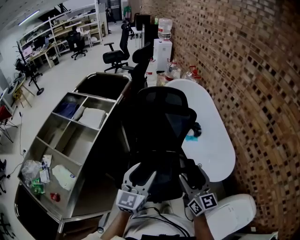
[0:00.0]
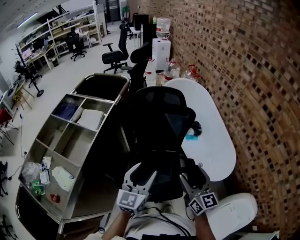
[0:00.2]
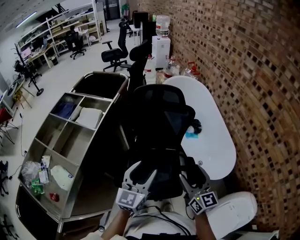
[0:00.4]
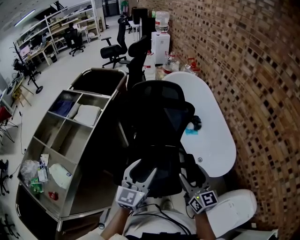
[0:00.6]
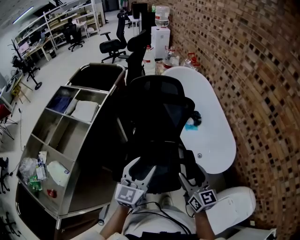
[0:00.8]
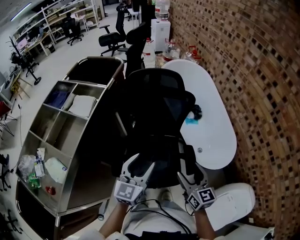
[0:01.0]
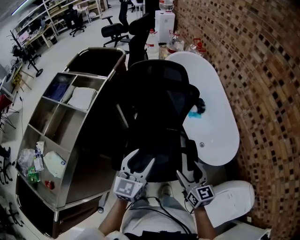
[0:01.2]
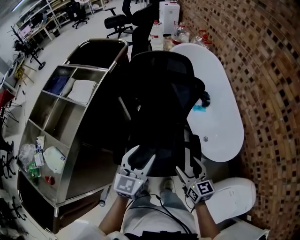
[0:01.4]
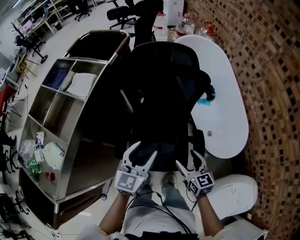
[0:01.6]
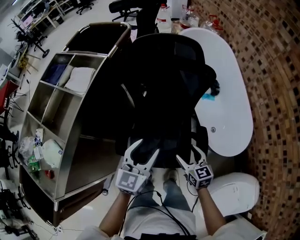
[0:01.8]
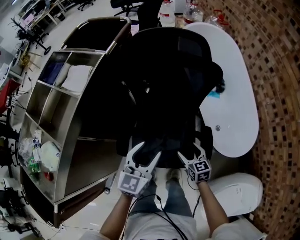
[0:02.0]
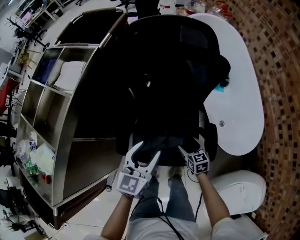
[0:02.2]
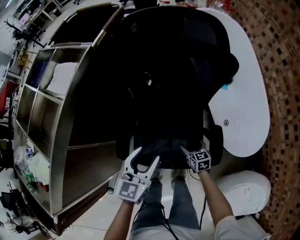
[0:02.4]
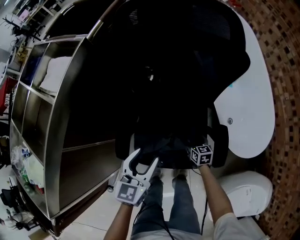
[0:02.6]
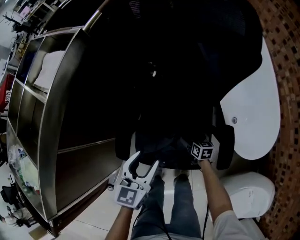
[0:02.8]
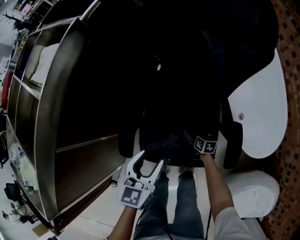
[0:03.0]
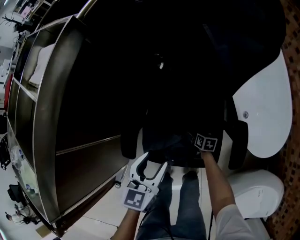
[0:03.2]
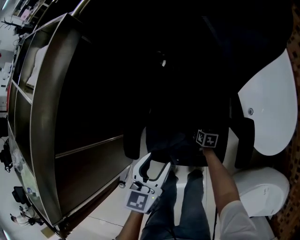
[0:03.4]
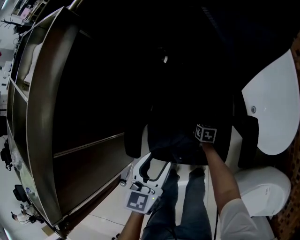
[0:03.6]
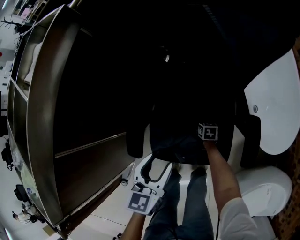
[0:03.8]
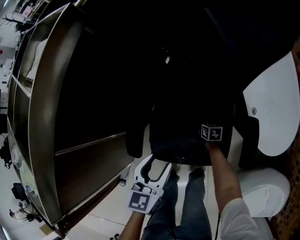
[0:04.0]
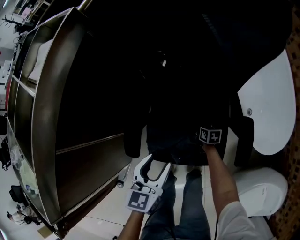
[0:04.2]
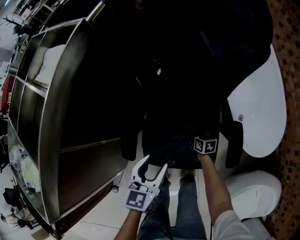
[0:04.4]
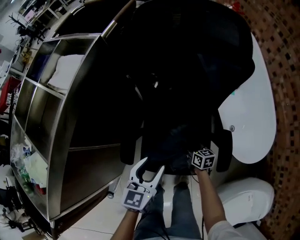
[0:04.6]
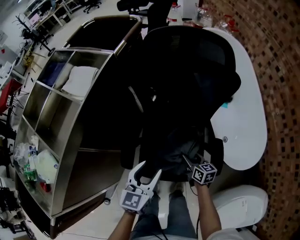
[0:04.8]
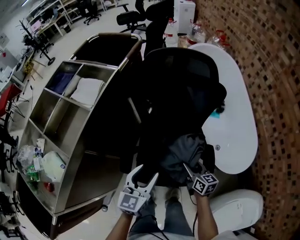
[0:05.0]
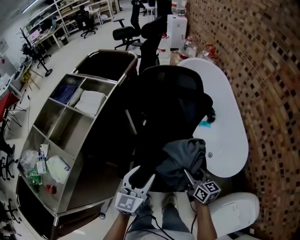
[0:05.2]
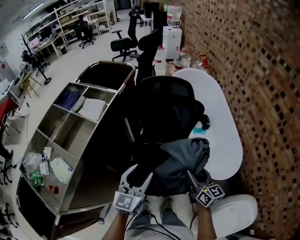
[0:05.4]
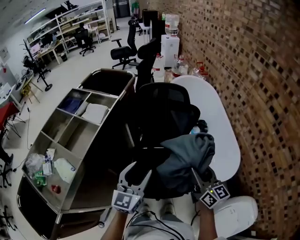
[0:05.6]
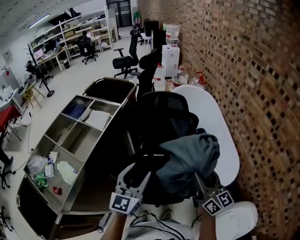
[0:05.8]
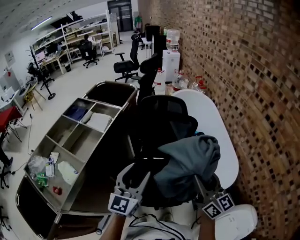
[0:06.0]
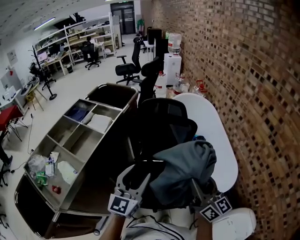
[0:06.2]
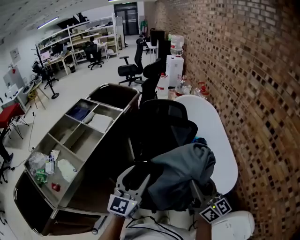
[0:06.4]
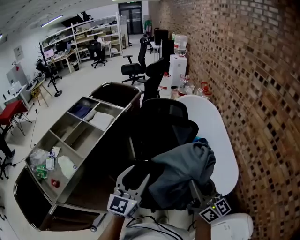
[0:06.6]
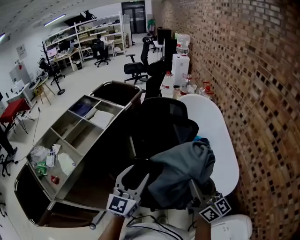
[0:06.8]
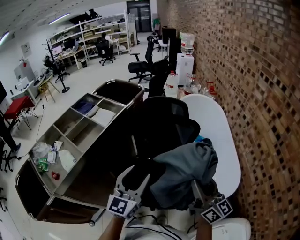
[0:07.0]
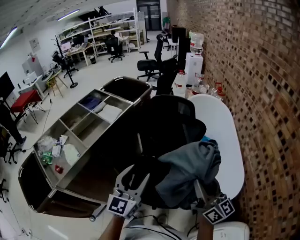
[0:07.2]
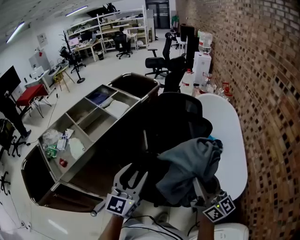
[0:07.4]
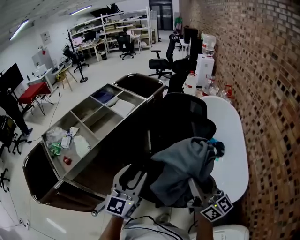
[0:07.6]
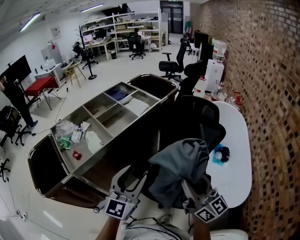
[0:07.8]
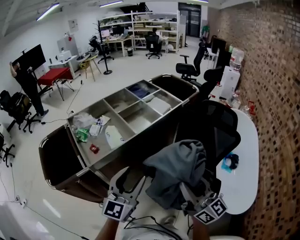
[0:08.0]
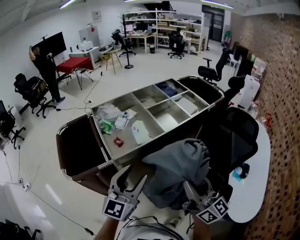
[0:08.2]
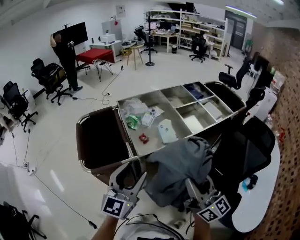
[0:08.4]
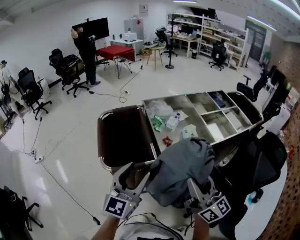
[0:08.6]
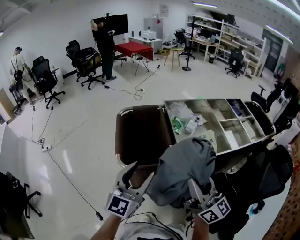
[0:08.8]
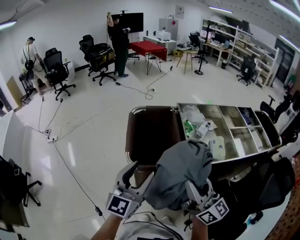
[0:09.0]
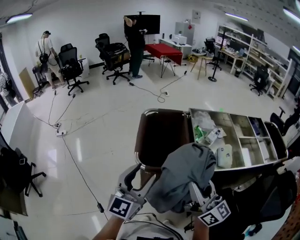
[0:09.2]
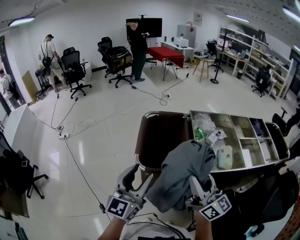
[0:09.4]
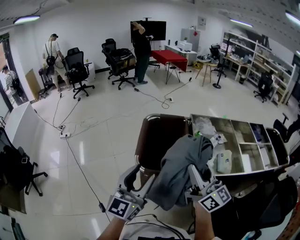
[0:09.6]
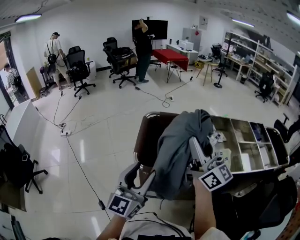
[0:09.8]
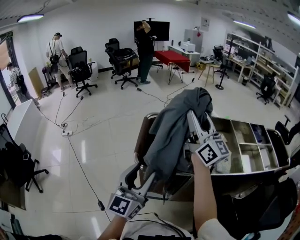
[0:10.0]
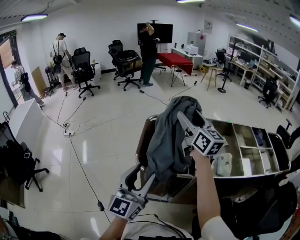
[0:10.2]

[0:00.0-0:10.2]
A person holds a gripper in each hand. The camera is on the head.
0:00.0 to 0:01.4: The left gripper shifts about 5 cm downward. Meanwhile the right gripper goes about 15 cm downward, and swivels about 20 degrees.
0:01.4 to 0:03.0: The left gripper is displaced downward by about 25 cm. The right gripper shifts approximately 50 cm downward, changes its angle by approximately 40 degrees, and opens.
0:03.0 to 0:04.4: The right gripper reaches some 10 cm downward, then returns, and closes.
0:04.4 to 0:05.8: The left gripper travels upward by approximately 35 cm, and tilts its fingers some 30 degrees upward; the right gripper heads upward, covering about 70 cm, and angles its fingers upward, by about 50 degrees.
0:05.8 to 0:07.2: The left gripper changes place by some 5 cm.
0:07.2 to 0:08.8: Both grippers are carried approximately 70 cm. The right gripper swivels some 50 degrees; the left gripper rotates about 50 degrees.
0:08.8 to 0:10.2: The left gripper heads to the left, covering approximately 5 cm, and rotates some 20 degrees. Meanwhile the right gripper travels forward by some 25 cm.

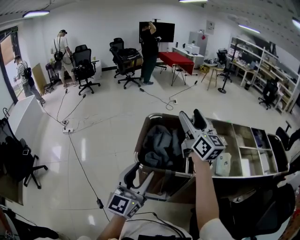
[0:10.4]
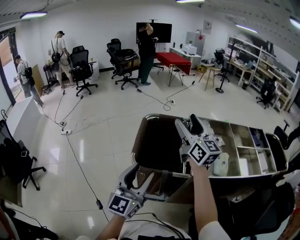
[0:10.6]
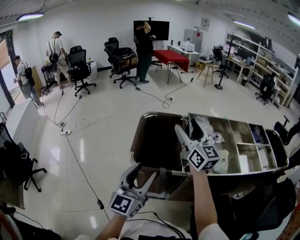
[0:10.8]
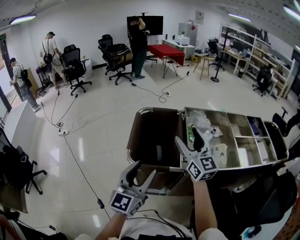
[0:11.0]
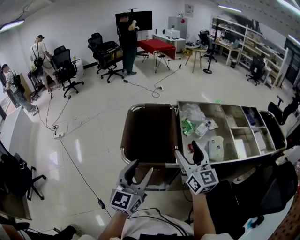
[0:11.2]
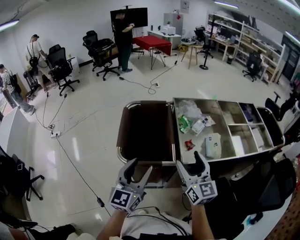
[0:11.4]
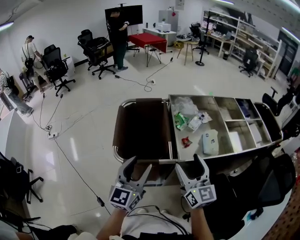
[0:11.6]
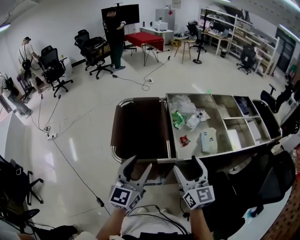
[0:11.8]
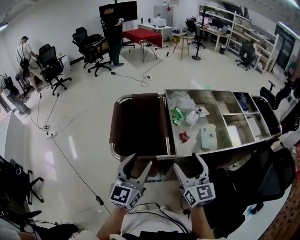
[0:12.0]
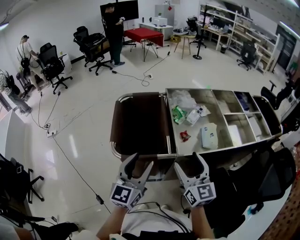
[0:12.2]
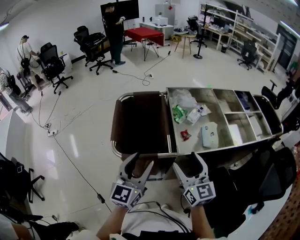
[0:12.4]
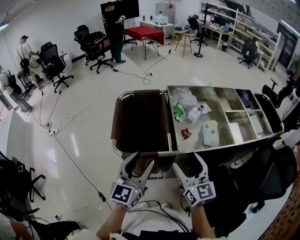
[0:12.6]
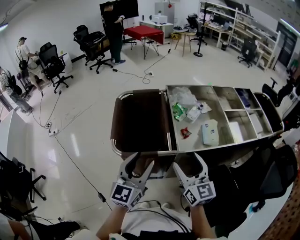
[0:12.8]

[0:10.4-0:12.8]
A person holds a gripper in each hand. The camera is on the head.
0:10.4 to 0:11.6: The left gripper travels to the right and downward by some 10 cm; the right gripper is displaced downward, backward and to the right by roughly 25 cm, and changes its angle by some 20 degrees.
0:11.6 to 0:12.8: The grippers make only small movements.

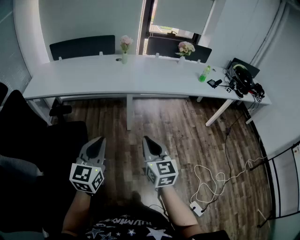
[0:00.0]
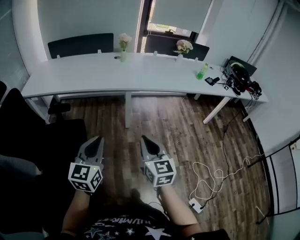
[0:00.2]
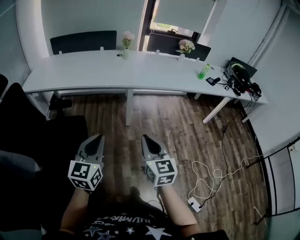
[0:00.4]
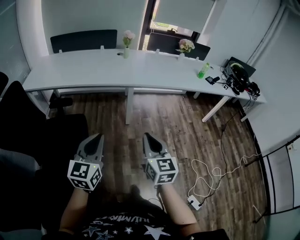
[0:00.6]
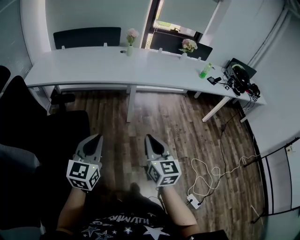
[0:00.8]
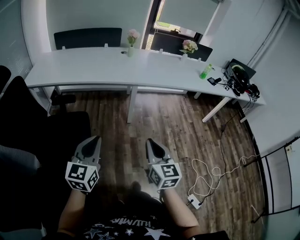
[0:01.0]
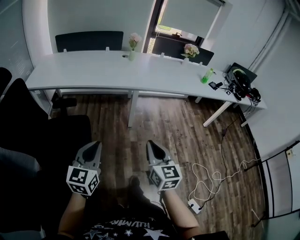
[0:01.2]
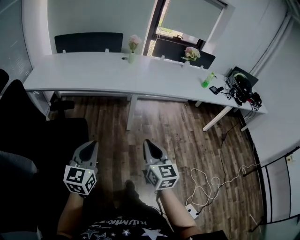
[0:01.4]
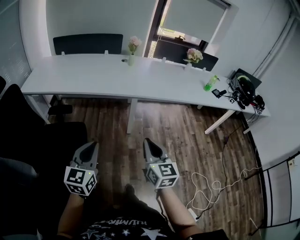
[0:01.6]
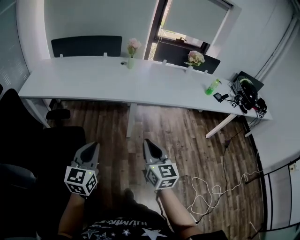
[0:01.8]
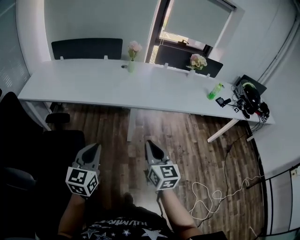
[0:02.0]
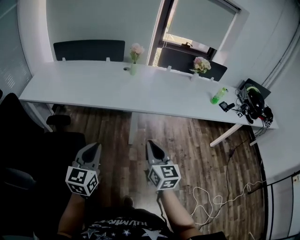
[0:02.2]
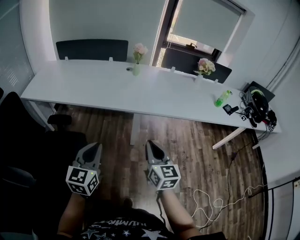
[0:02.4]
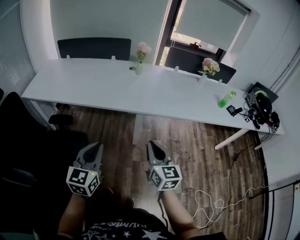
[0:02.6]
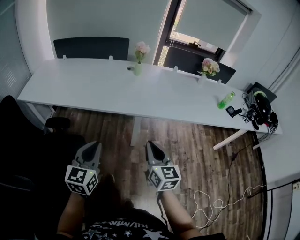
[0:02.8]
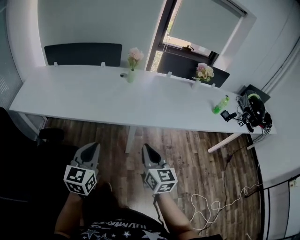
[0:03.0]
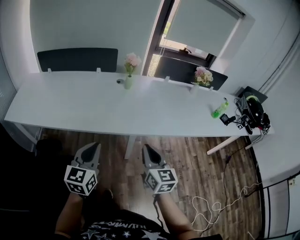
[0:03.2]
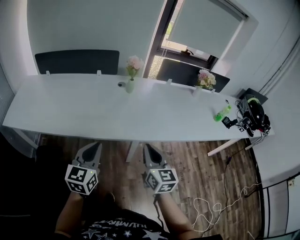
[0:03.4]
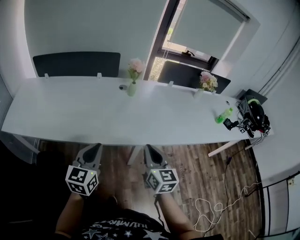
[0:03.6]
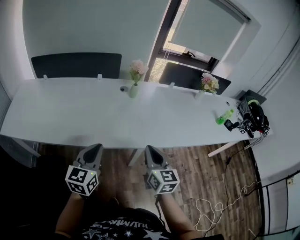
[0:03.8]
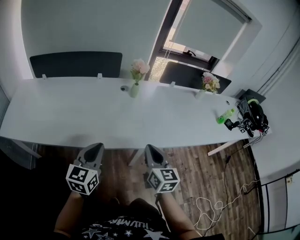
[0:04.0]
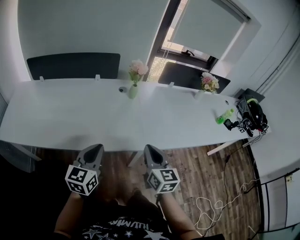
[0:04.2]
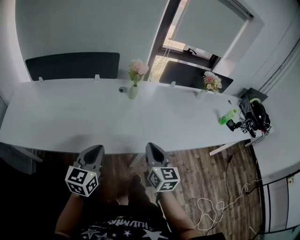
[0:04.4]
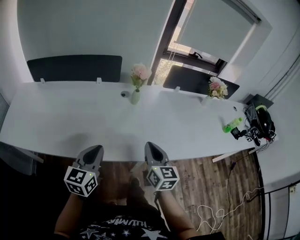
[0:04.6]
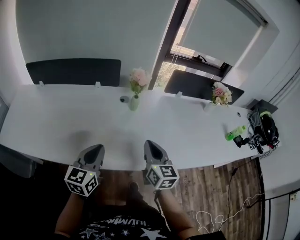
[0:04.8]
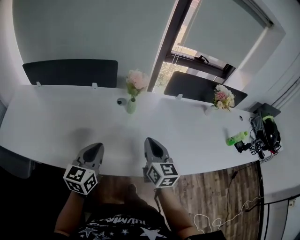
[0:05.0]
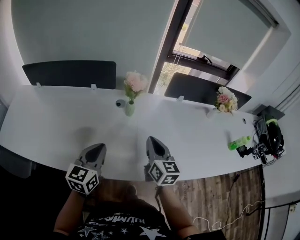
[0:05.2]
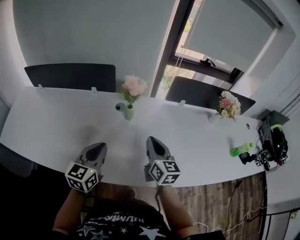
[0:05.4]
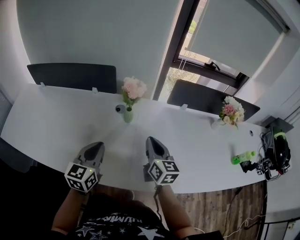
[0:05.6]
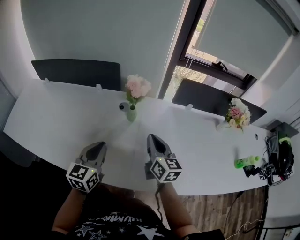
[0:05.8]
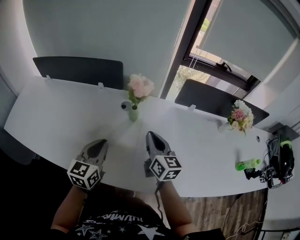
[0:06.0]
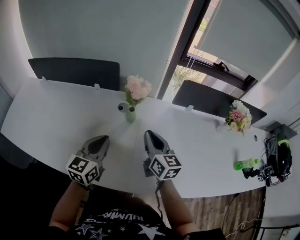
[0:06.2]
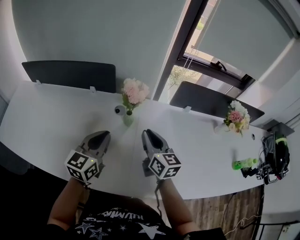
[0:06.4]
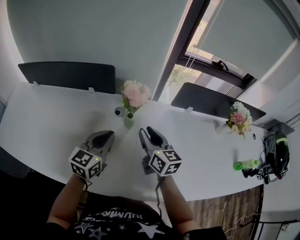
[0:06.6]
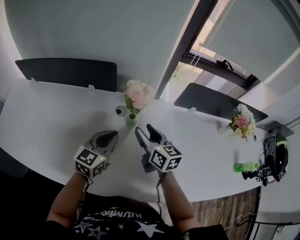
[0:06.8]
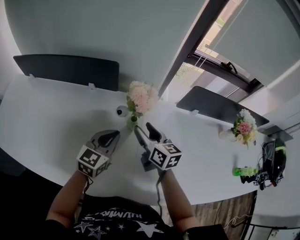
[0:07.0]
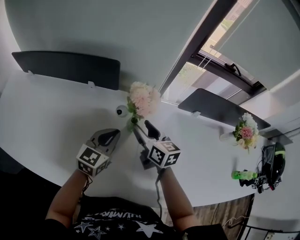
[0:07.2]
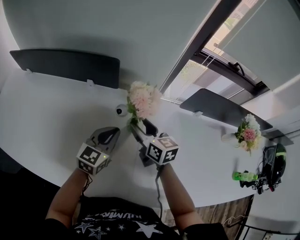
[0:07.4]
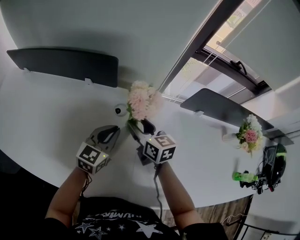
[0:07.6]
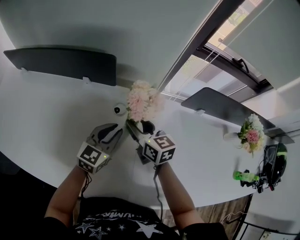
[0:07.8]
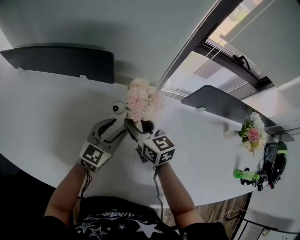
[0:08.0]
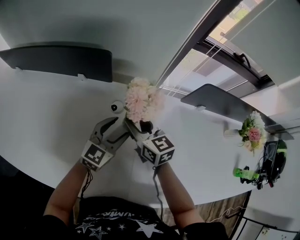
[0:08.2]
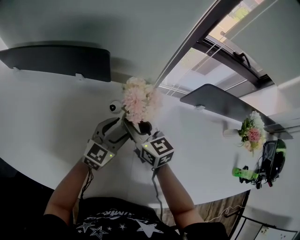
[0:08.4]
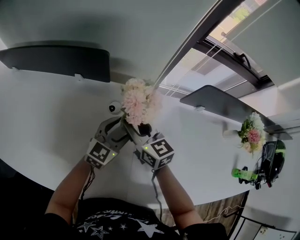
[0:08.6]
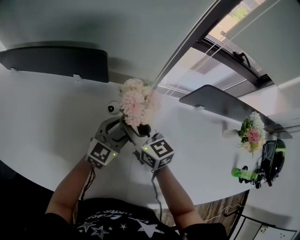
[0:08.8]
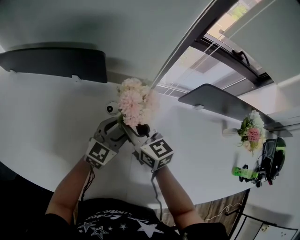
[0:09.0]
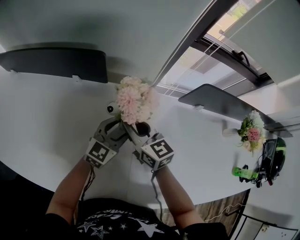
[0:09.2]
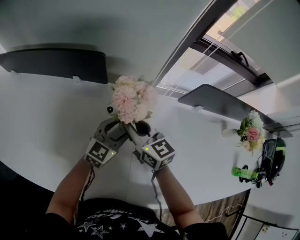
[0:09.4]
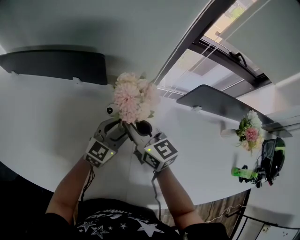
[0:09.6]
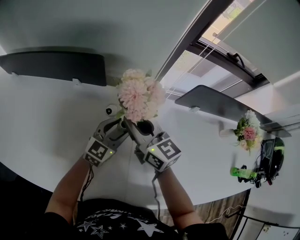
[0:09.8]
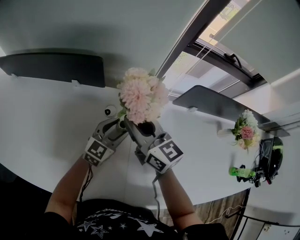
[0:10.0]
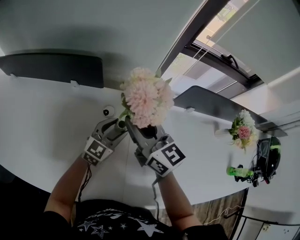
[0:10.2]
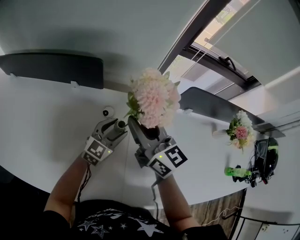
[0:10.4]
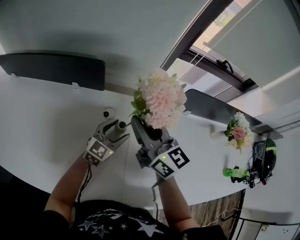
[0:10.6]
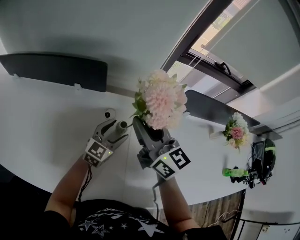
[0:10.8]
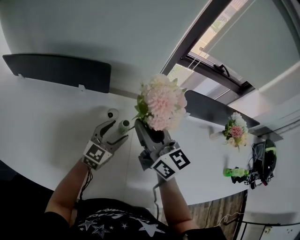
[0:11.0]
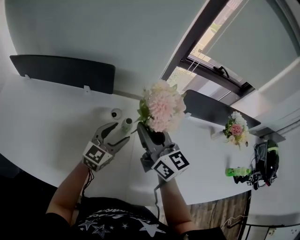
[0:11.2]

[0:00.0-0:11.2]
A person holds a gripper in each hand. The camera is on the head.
0:00.0 to 0:01.6: The right gripper travels forward by about 5 cm. Meanwhile the left gripper heads to the left, covering some 10 cm.
0:01.6 to 0:03.2: The two grippers go roughly 30 cm forward.
0:03.2 to 0:04.8: Both grippers travel together forward, about 25 cm.
0:04.8 to 0:06.4: The right gripper is displaced forward by roughly 20 cm, while the left gripper heads forward and to the right, covering about 20 cm.
0:06.4 to 0:08.0: The right gripper moves forward, to the left and downward, approximately 15 cm, and opens. The left gripper shifts about 20 cm forward and downward, and opens up.
0:08.0 to 0:09.6: The right gripper closes its fingers; the left gripper shifts by some 5 cm.
0:09.6 to 0:11.2: The two grippers go about 10 cm upward and backward.
